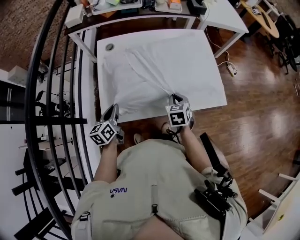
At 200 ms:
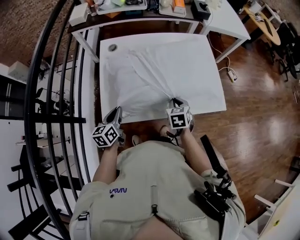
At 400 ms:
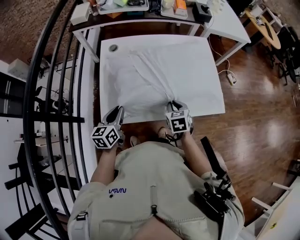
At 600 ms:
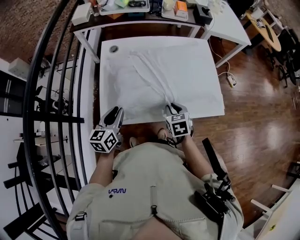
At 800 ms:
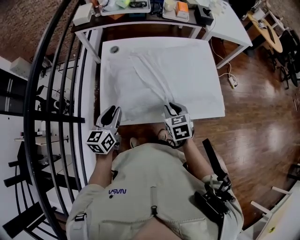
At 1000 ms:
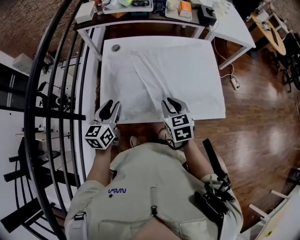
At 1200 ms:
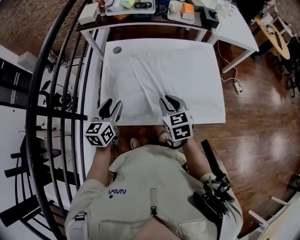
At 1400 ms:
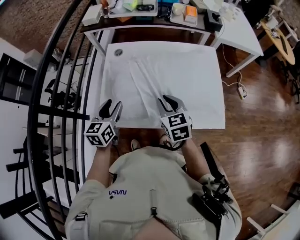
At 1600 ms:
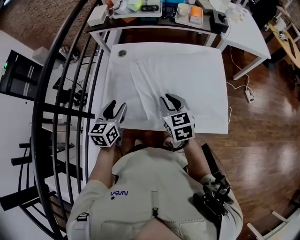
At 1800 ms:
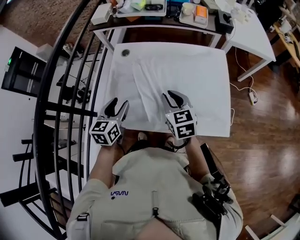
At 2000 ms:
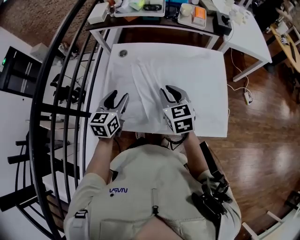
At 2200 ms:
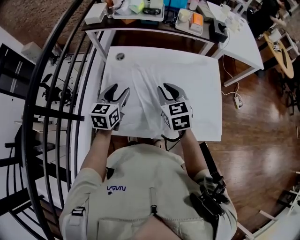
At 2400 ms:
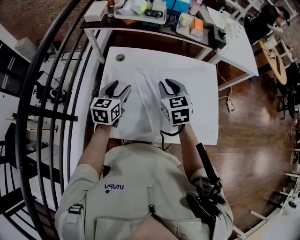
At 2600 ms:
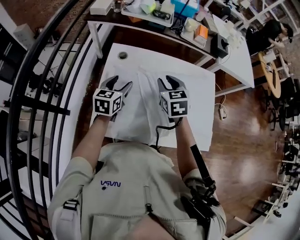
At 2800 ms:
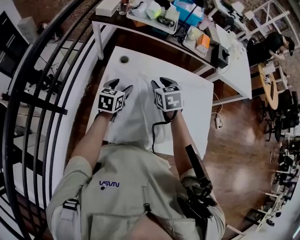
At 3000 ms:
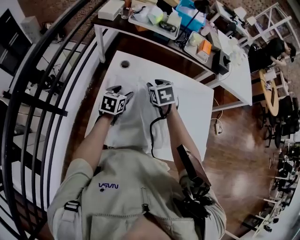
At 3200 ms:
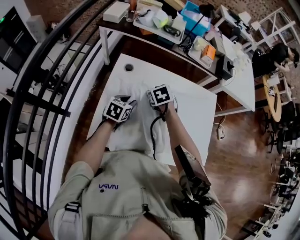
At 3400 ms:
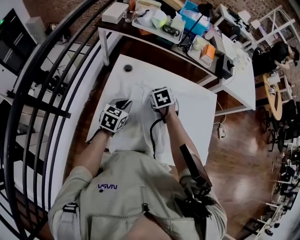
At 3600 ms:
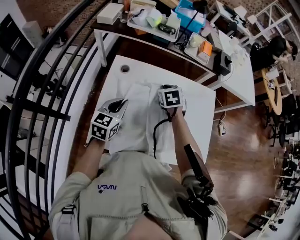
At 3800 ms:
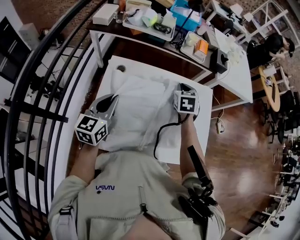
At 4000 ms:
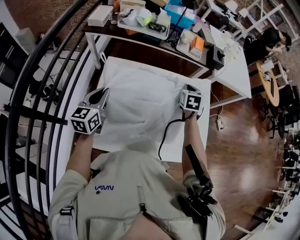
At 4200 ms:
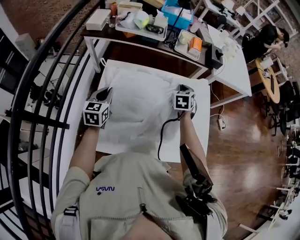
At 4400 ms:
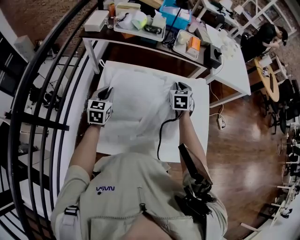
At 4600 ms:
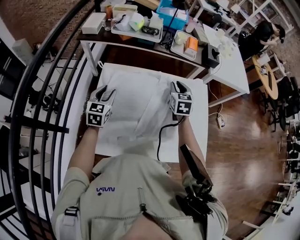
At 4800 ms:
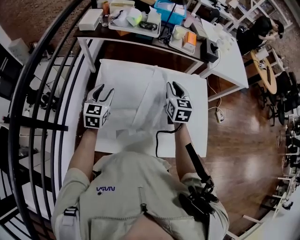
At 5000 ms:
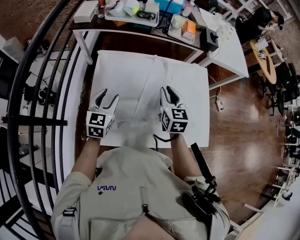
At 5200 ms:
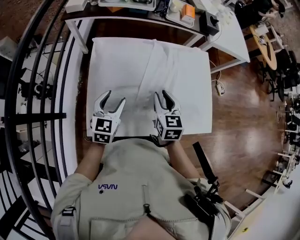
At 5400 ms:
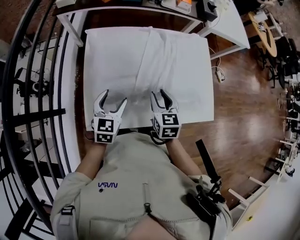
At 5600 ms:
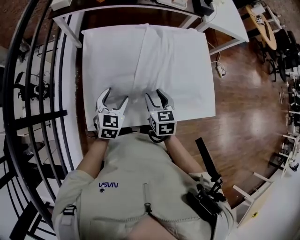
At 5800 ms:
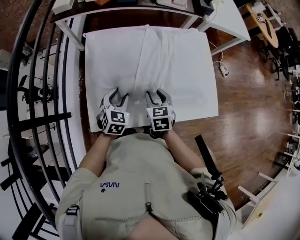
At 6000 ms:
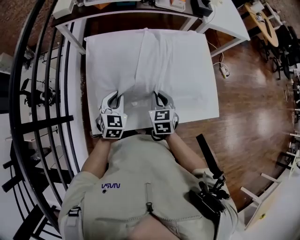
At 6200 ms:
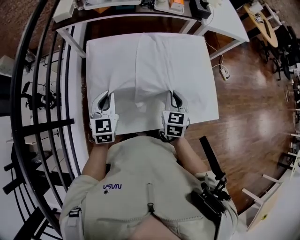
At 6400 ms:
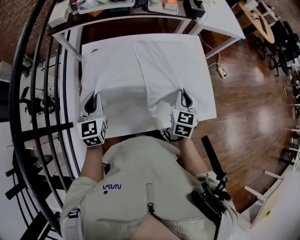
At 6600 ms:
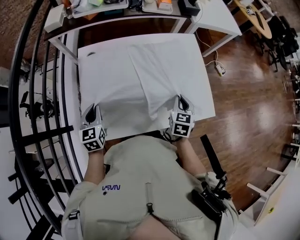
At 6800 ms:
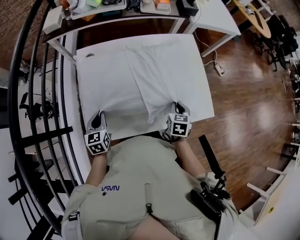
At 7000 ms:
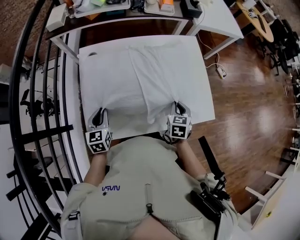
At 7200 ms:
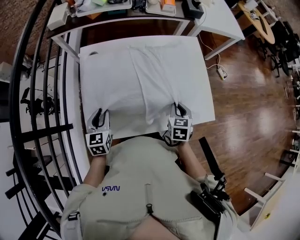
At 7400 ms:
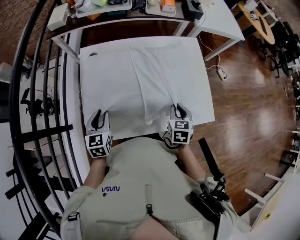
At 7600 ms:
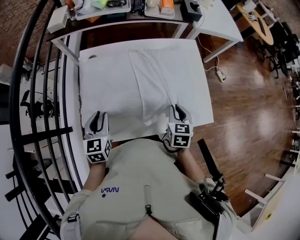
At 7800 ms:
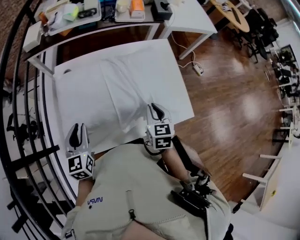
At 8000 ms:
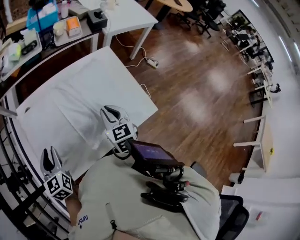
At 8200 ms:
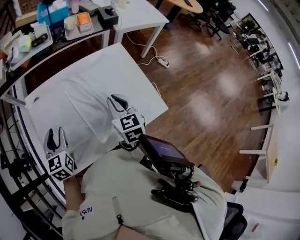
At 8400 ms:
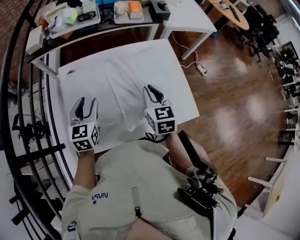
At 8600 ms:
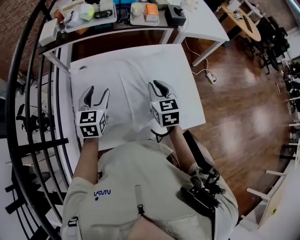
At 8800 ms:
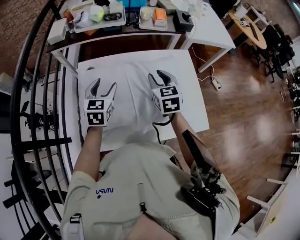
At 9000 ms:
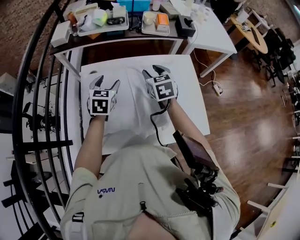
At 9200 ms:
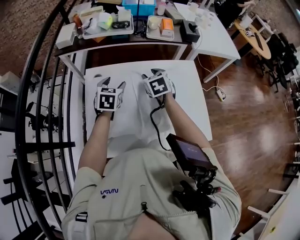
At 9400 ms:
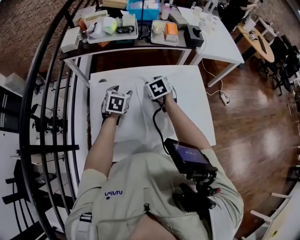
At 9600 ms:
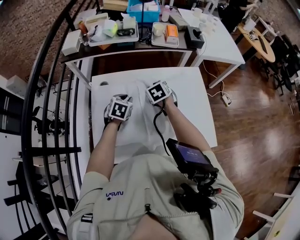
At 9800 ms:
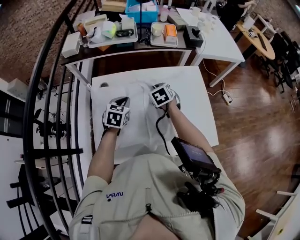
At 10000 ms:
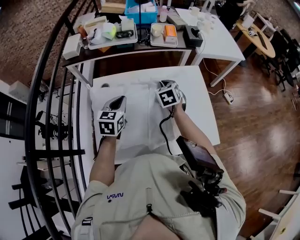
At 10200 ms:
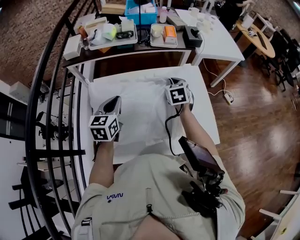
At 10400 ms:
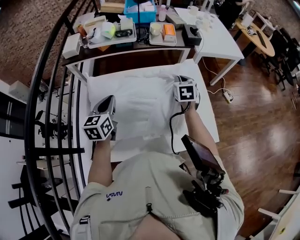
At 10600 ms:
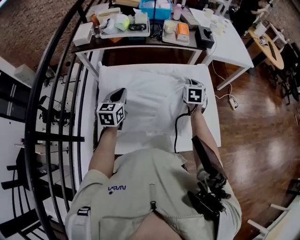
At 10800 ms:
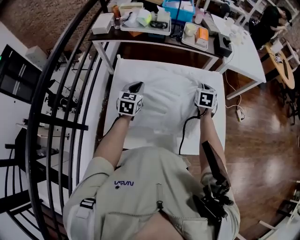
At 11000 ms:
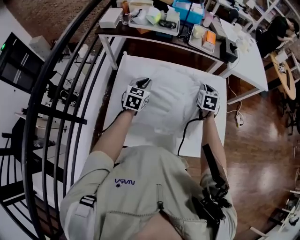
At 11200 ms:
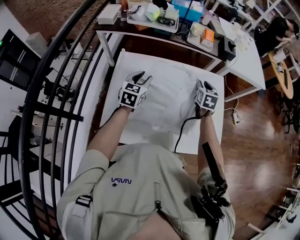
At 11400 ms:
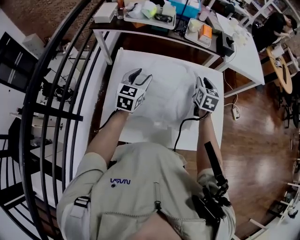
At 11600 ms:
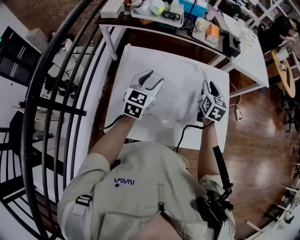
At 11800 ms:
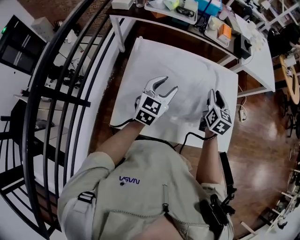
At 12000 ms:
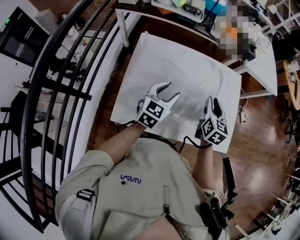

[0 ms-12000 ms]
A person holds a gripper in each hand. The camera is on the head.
0 ms to 1600 ms: The right gripper goes about 10 cm upward, and changes its angle by some 30 degrees; the left gripper is displaced upward and to the right by approximately 10 cm, changes its angle by approximately 20 degrees, and opens up.
1600 ms to 3000 ms: The right gripper shifts about 25 cm forward and to the left, and turns by approximately 20 degrees. Meanwhile the left gripper goes roughly 20 cm forward.
3000 ms to 4400 ms: The right gripper heads to the right and forward, covering approximately 20 cm, swivels about 30 degrees, and closes its fingers; the left gripper reaches roughly 15 cm upward, then returns, swivels approximately 20 degrees, and closes up.
4400 ms to 6000 ms: The right gripper moves backward, some 25 cm, and opens, then closes again, while the left gripper goes approximately 15 cm backward, to the right and downward, and opens, then closes again.
6000 ms to 7600 ms: The right gripper is displaced to the right by roughly 15 cm, while the left gripper swings up and down, approximately 10 cm each way, with 2 reversals.
7600 ms to 9000 ms: The right gripper is displaced forward, to the left and upward by some 25 cm, changes its angle by some 20 degrees, and opens; the left gripper shifts about 20 cm forward, and opens up.
9000 ms to 10400 ms: The right gripper goes approximately 10 cm to the right, and closes its fingers. Meanwhile the left gripper heads backward, covering some 5 cm, travels downward and back again, approximately 10 cm each way, changes its angle by about 20 degrees, and closes its fingers.
10400 ms to 12000 ms: The left gripper is displaced to the right, backward and downward by about 10 cm, and opens up. Meanwhile the right gripper shifts roughly 15 cm backward, and opens its fingers.

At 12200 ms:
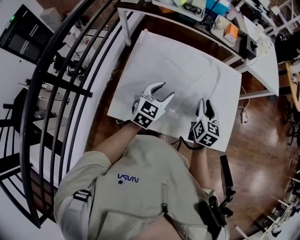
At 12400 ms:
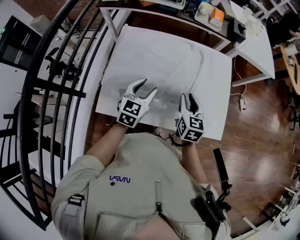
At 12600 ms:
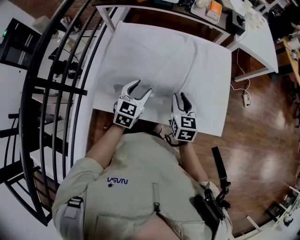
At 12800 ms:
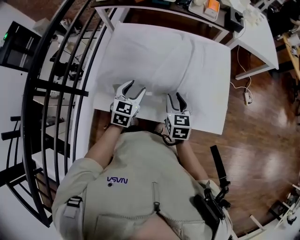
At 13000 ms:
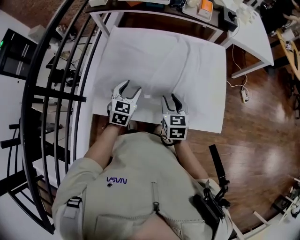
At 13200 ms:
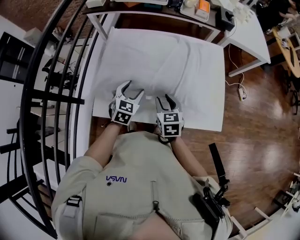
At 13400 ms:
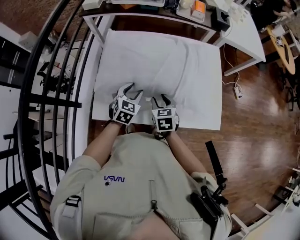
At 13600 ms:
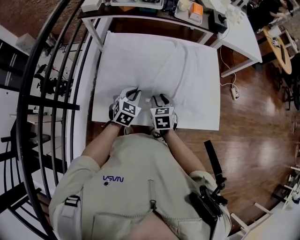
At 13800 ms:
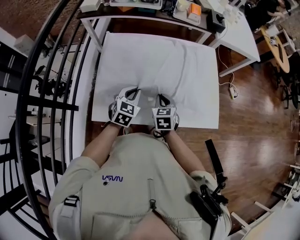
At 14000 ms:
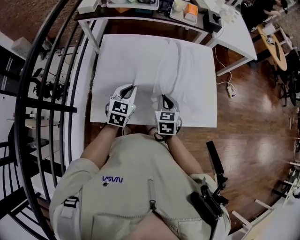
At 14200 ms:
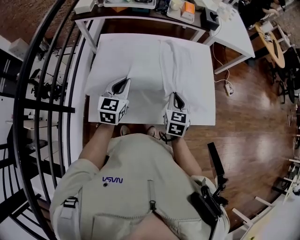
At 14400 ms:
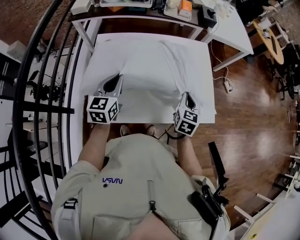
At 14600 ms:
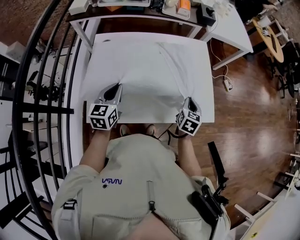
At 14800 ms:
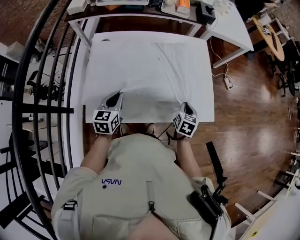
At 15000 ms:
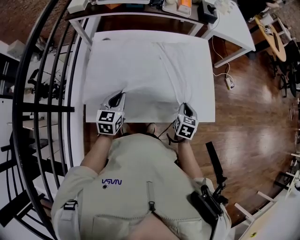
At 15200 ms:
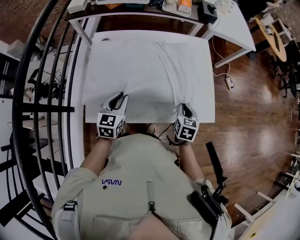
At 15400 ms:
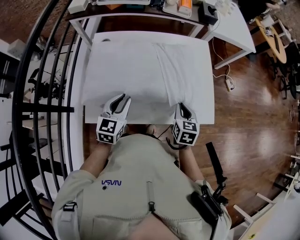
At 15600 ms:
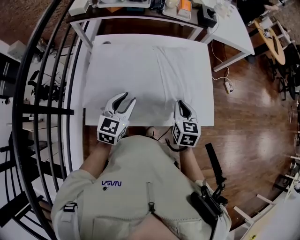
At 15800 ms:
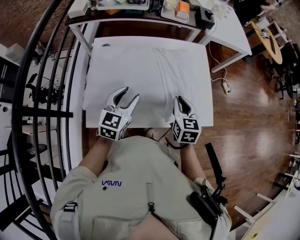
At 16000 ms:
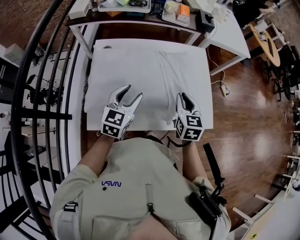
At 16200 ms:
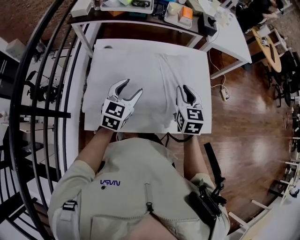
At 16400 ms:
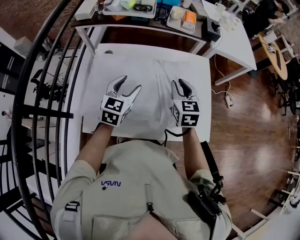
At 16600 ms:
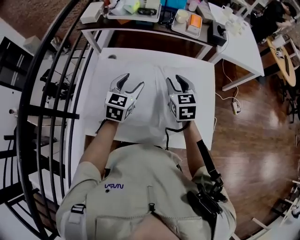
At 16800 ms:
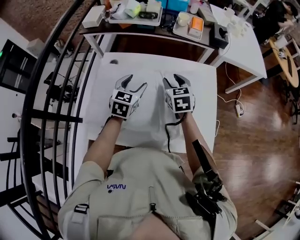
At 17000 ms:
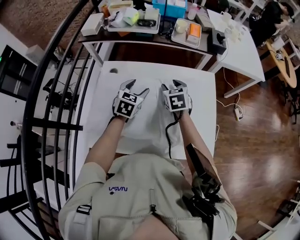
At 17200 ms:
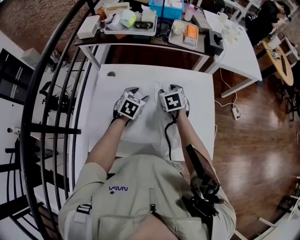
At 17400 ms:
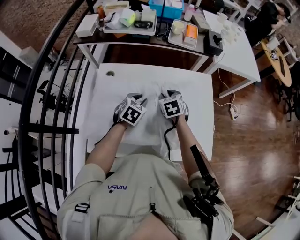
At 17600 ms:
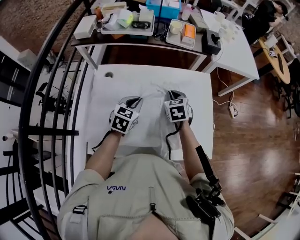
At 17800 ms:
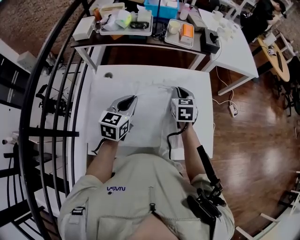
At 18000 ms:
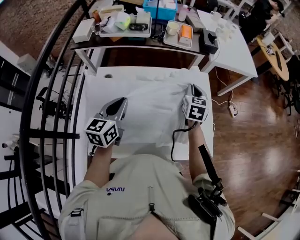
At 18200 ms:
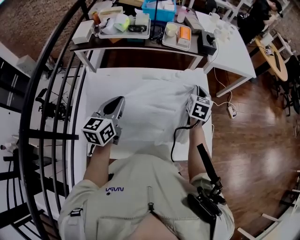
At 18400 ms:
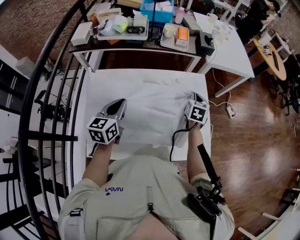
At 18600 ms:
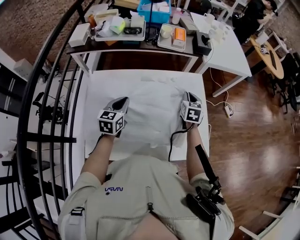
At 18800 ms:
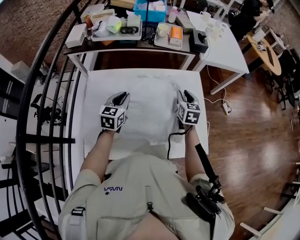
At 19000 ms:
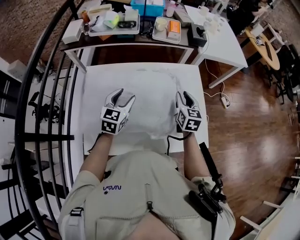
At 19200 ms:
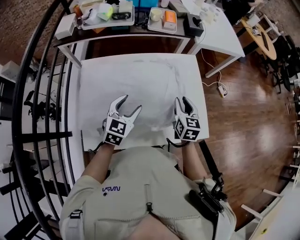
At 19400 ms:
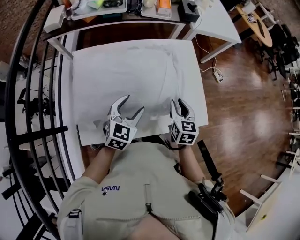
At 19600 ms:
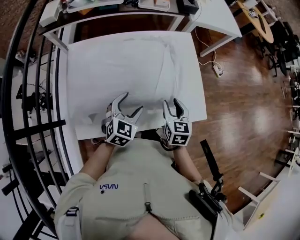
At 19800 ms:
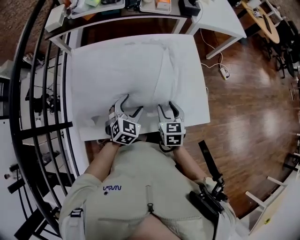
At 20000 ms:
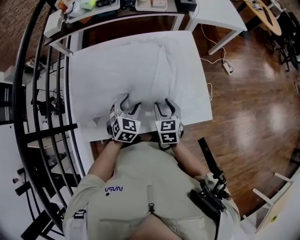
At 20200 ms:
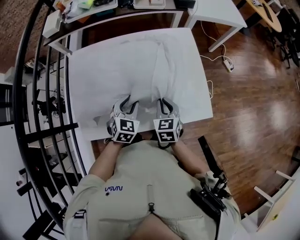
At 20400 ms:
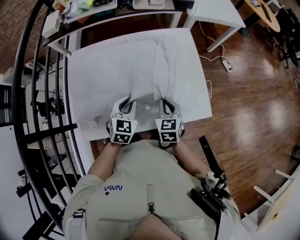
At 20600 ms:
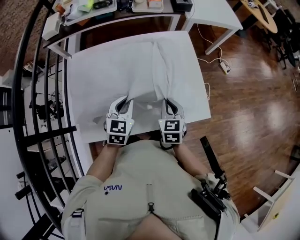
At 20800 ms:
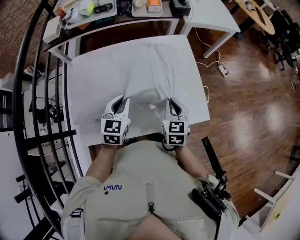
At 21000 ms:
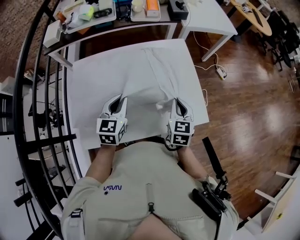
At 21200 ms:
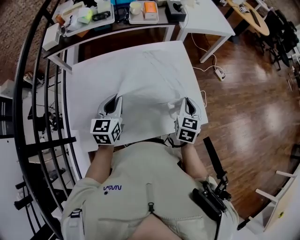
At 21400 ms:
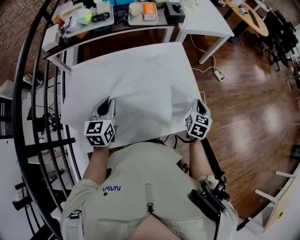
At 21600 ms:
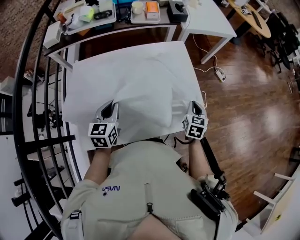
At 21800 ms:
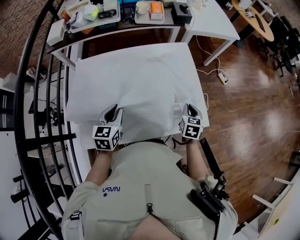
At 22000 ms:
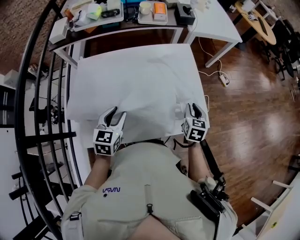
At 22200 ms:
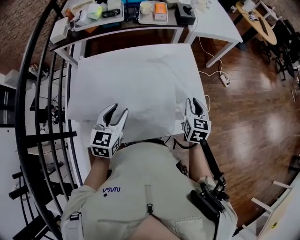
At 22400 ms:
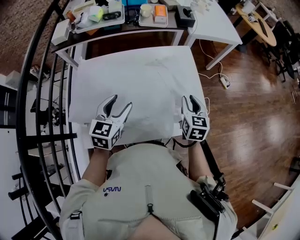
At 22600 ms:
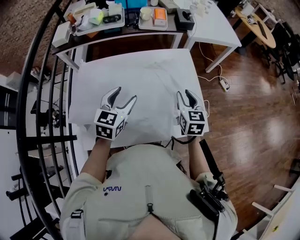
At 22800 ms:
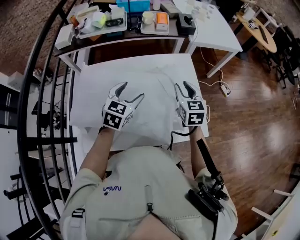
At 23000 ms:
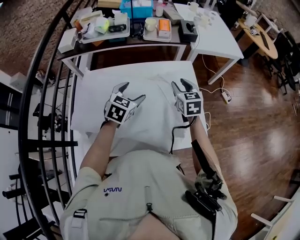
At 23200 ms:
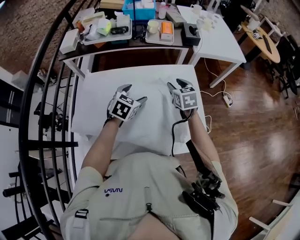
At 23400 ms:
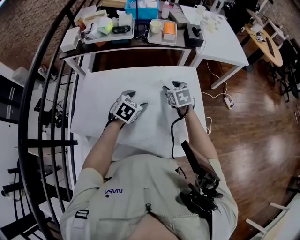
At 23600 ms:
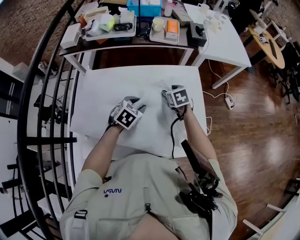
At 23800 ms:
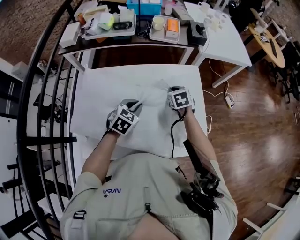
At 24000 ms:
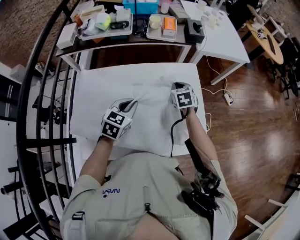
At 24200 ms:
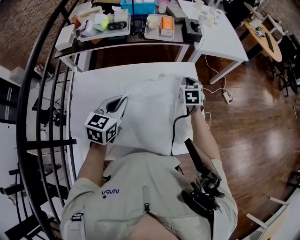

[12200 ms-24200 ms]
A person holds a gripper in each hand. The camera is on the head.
12200 ms to 13800 ms: The right gripper travels downward, to the left and backward by approximately 15 cm, rotates about 20 degrees, and closes its fingers. The left gripper moves downward, approximately 5 cm, and closes up.
13800 ms to 15200 ms: The right gripper goes about 15 cm to the right, and turns by some 20 degrees. Meanwhile the left gripper goes upward and returns, some 10 cm each way.
15200 ms to 16600 ms: The left gripper heads forward and upward, covering about 20 cm, and opens; the right gripper shifts about 25 cm forward, upward and to the left, turns by about 30 degrees, and opens up.
16600 ms to 18200 ms: The right gripper goes roughly 15 cm to the right and forward, changes its angle by roughly 30 degrees, and closes, while the left gripper is displaced upward and to the left by about 10 cm, swivels approximately 20 degrees, and closes up.
18200 ms to 19800 ms: The left gripper moves downward, to the right and backward, approximately 25 cm, turns by roughly 50 degrees, and opens up; the right gripper is displaced backward and downward by roughly 30 cm, and opens its fingers.
19800 ms to 21200 ms: The left gripper heads upward and to the left, covering roughly 10 cm, turns by roughly 30 degrees, and closes up. Meanwhile the right gripper heads to the right and upward, covering some 15 cm, changes its angle by about 20 degrees, and closes.
21200 ms to 22600 ms: The left gripper travels downward and back again, approximately 5 cm each way, and opens up; the right gripper moves about 5 cm, and opens its fingers.
22600 ms to 24200 ms: The left gripper travels forward by about 5 cm, moves about 10 cm downward and comes back, and closes its fingers. The right gripper travels forward by roughly 20 cm, and closes.
